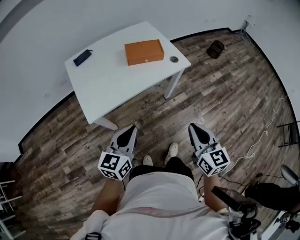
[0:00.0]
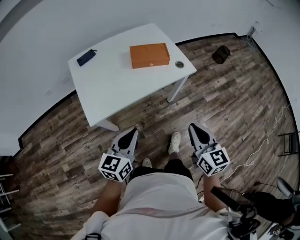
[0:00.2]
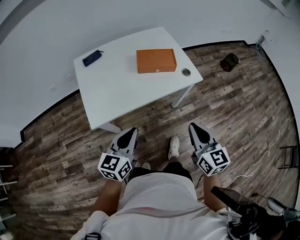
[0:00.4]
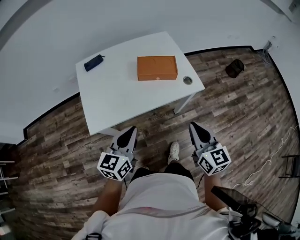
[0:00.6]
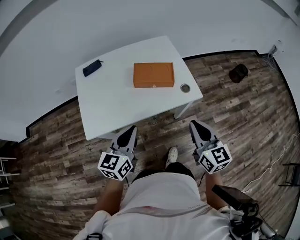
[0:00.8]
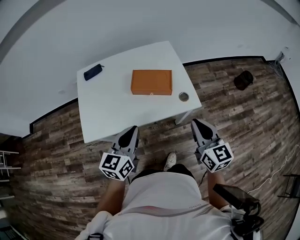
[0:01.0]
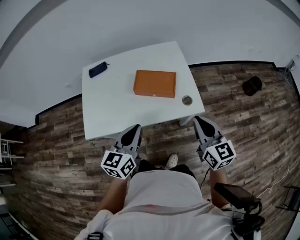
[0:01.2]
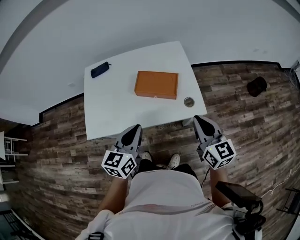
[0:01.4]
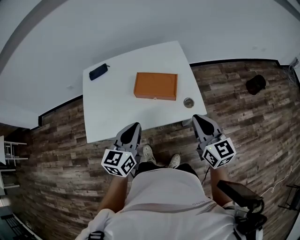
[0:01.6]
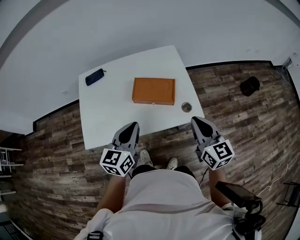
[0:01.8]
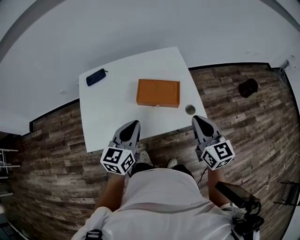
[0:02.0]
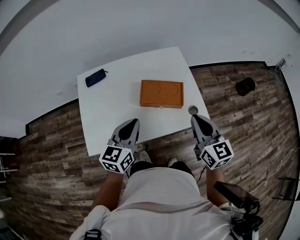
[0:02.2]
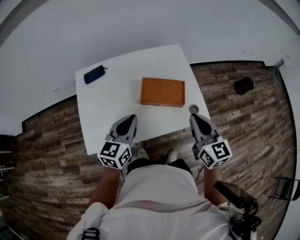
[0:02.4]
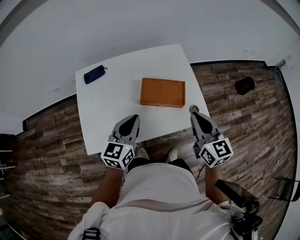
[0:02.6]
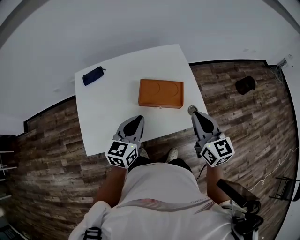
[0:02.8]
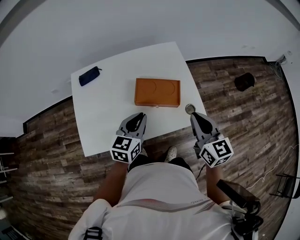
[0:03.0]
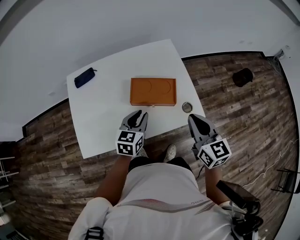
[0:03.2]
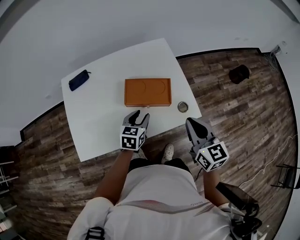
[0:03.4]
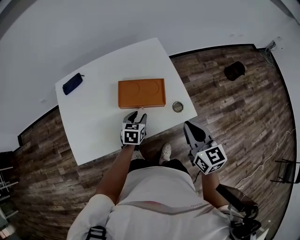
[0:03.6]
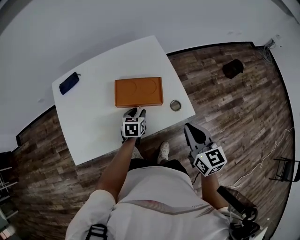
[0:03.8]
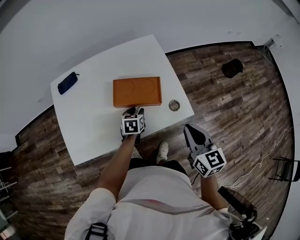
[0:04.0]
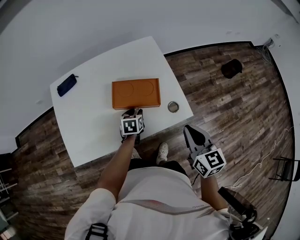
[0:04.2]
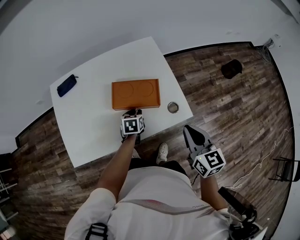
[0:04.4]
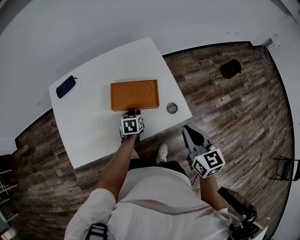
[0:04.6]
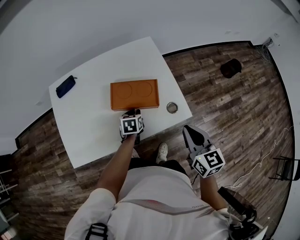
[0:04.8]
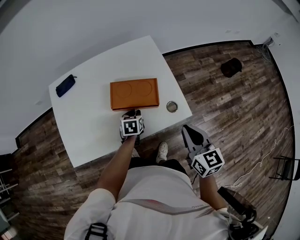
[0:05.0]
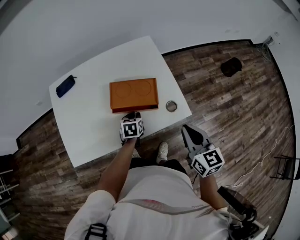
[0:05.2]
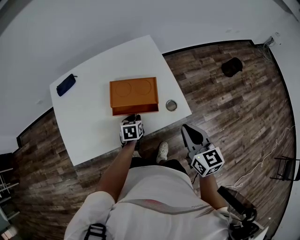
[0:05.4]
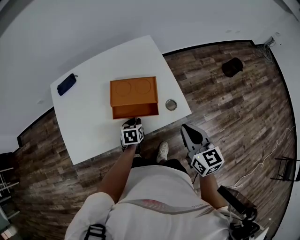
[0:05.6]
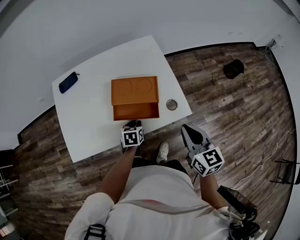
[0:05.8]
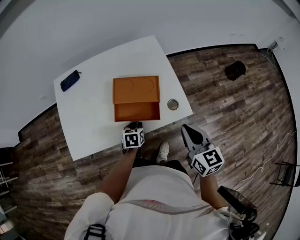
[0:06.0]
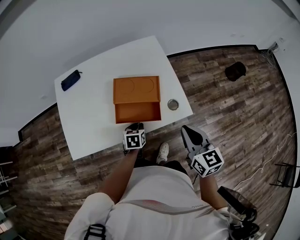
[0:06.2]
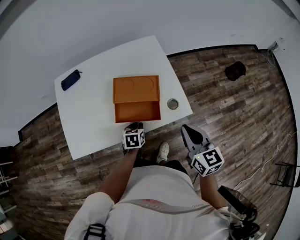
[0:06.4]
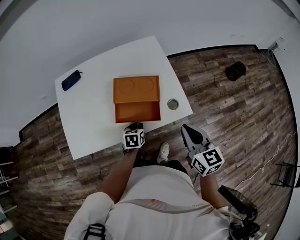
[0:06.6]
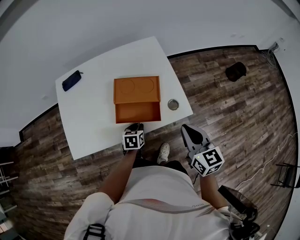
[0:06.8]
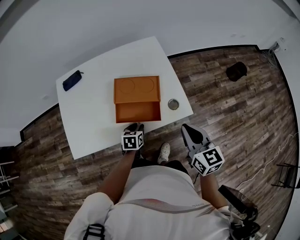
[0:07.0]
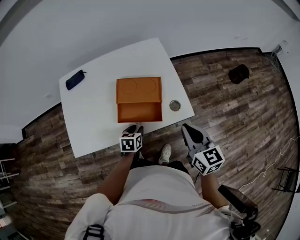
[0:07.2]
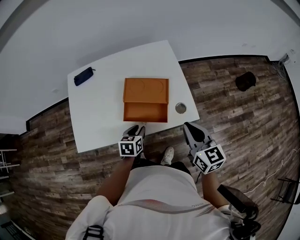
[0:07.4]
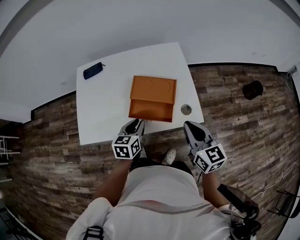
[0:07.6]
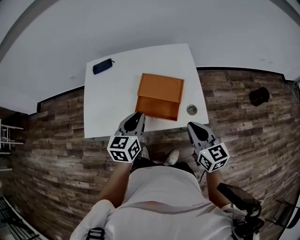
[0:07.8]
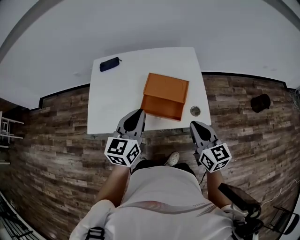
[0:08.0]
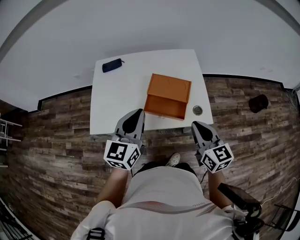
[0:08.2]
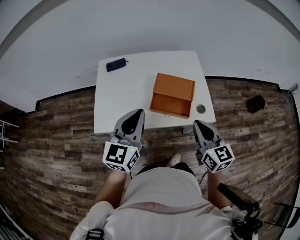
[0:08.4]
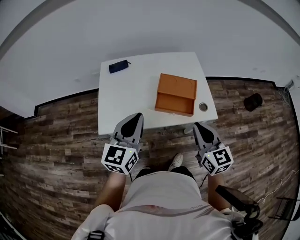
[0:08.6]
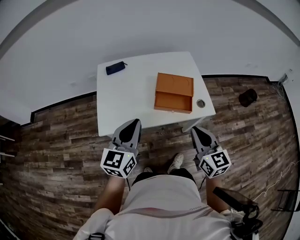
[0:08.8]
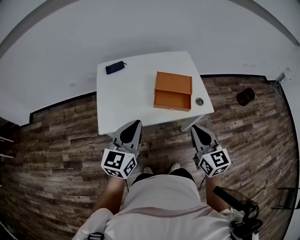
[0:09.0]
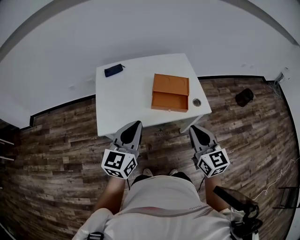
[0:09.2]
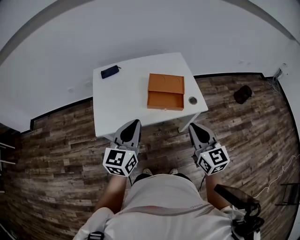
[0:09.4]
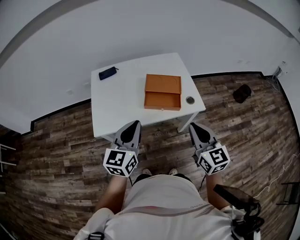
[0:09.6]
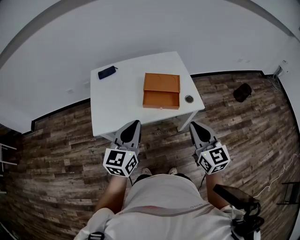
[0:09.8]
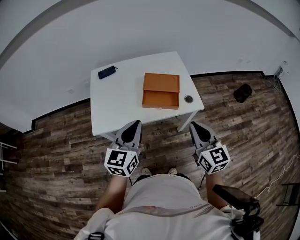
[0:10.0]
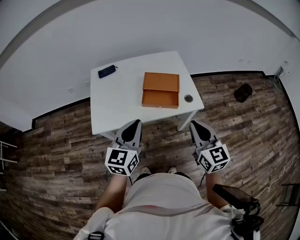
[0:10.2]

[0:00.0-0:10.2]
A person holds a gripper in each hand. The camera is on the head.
0:00.0 to 0:01.4: The right gripper heads forward, covering roughly 35 cm, and swivels roughly 30 degrees, while the left gripper heads forward and to the right, covering some 30 cm, and rotates some 20 degrees.
0:01.4 to 0:03.0: The right gripper shifts approximately 10 cm forward and to the left. The left gripper heads forward and downward, covering roughly 15 cm.
0:03.0 to 0:04.4: The right gripper shifts about 10 cm to the right. The left gripper moves downward, about 20 cm, and changes its angle by roughly 30 degrees.
0:04.4 to 0:05.8: The left gripper moves backward, about 10 cm.
0:05.8 to 0:07.2: The grippers stay close to where they were, moving slightly.
0:07.2 to 0:08.8: The left gripper heads upward, to the left and backward, covering some 40 cm, angles its fingers upward, by about 50 degrees, and closes its fingers. The right gripper goes about 20 cm to the left, backward and upward.
0:08.8 to 0:10.2: Both grippers move to the right, roughly 10 cm.

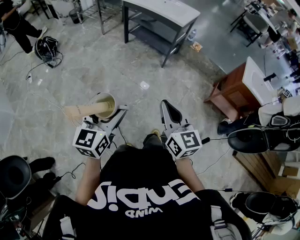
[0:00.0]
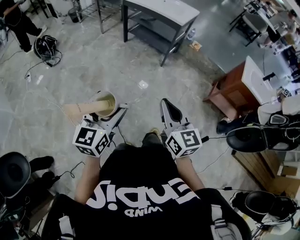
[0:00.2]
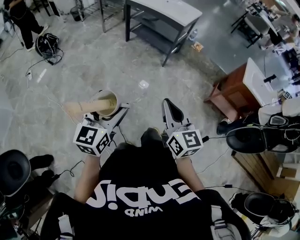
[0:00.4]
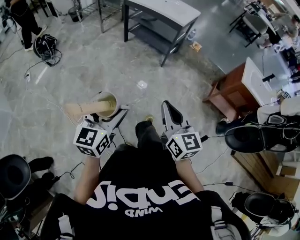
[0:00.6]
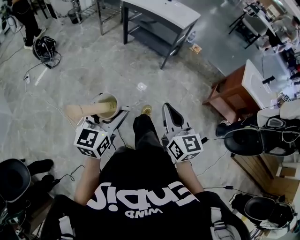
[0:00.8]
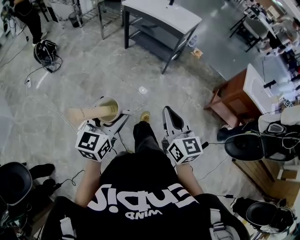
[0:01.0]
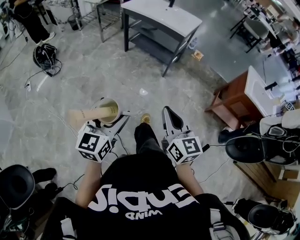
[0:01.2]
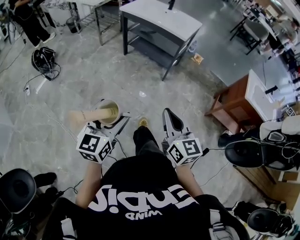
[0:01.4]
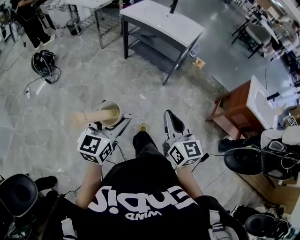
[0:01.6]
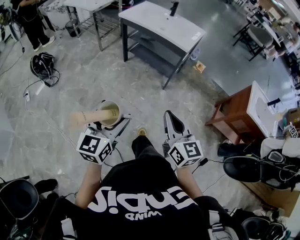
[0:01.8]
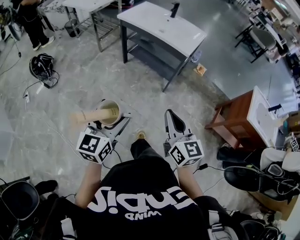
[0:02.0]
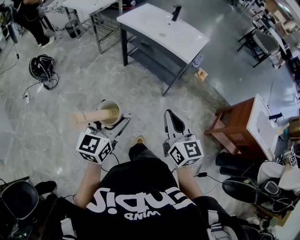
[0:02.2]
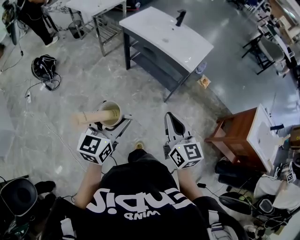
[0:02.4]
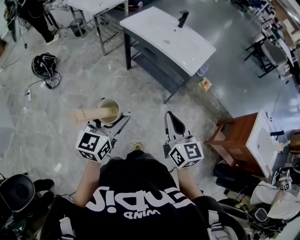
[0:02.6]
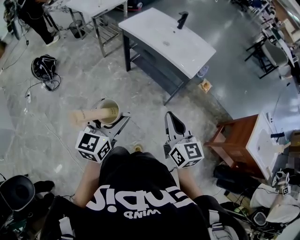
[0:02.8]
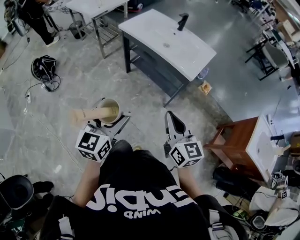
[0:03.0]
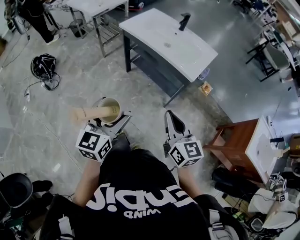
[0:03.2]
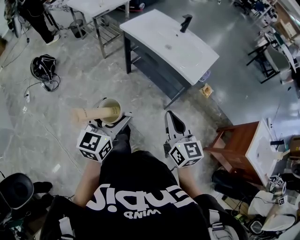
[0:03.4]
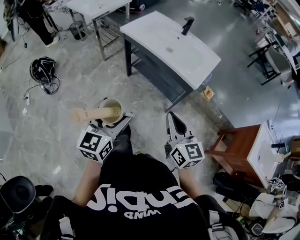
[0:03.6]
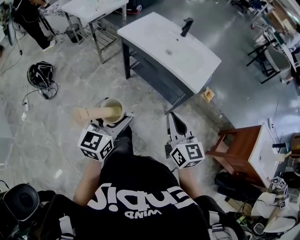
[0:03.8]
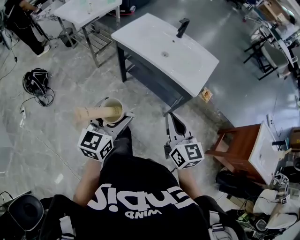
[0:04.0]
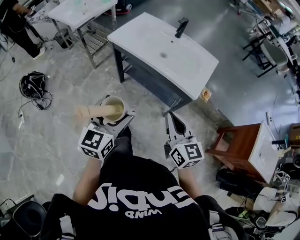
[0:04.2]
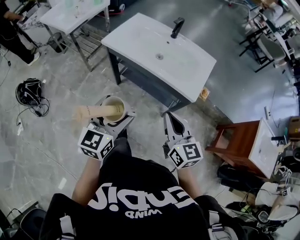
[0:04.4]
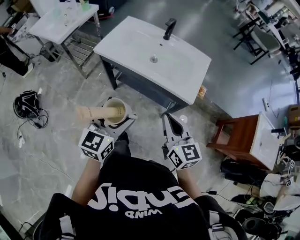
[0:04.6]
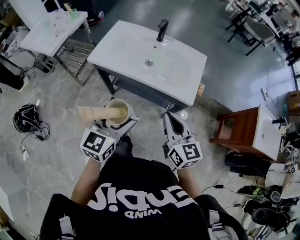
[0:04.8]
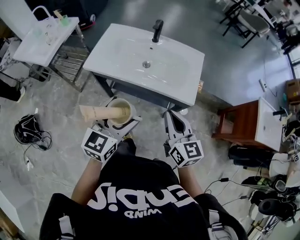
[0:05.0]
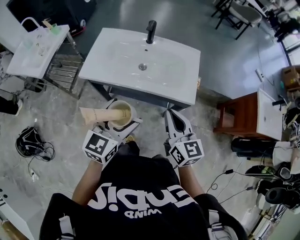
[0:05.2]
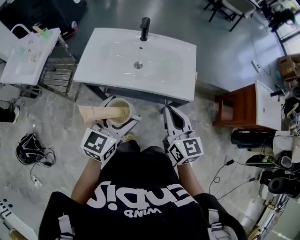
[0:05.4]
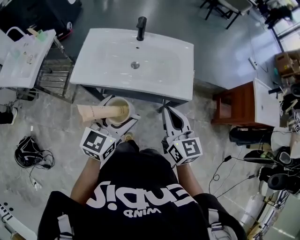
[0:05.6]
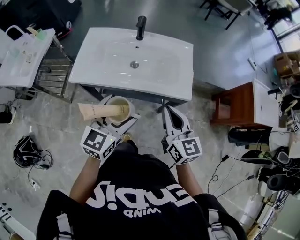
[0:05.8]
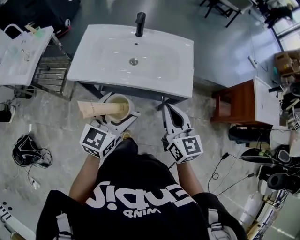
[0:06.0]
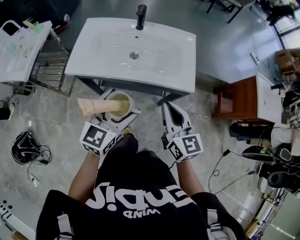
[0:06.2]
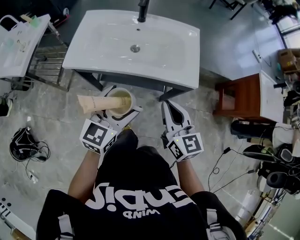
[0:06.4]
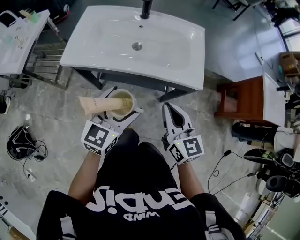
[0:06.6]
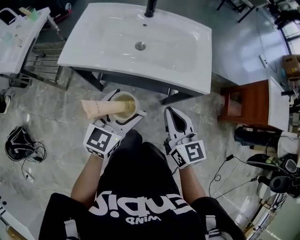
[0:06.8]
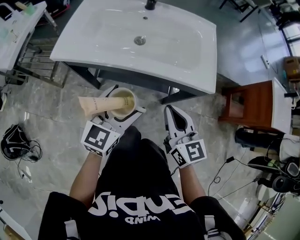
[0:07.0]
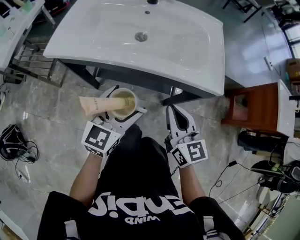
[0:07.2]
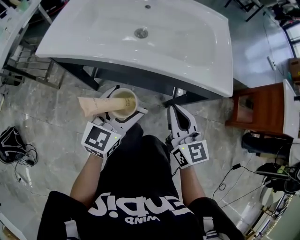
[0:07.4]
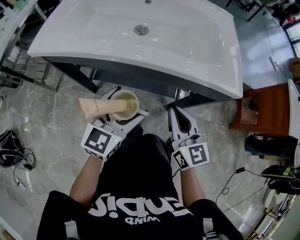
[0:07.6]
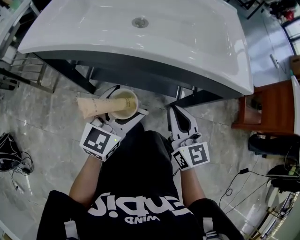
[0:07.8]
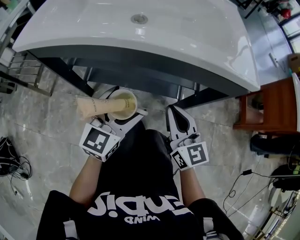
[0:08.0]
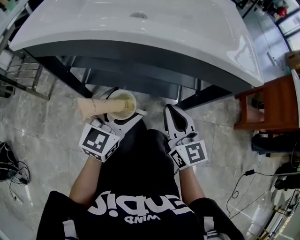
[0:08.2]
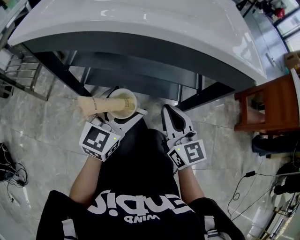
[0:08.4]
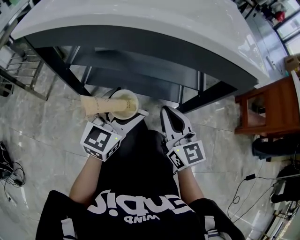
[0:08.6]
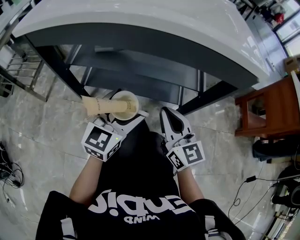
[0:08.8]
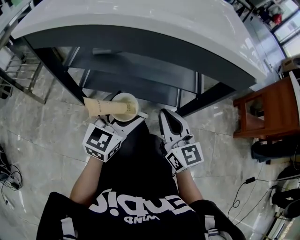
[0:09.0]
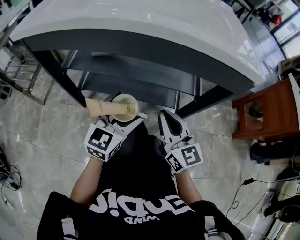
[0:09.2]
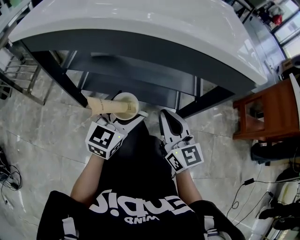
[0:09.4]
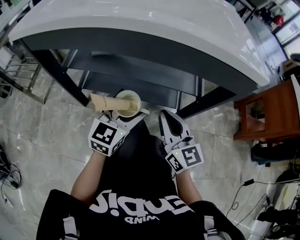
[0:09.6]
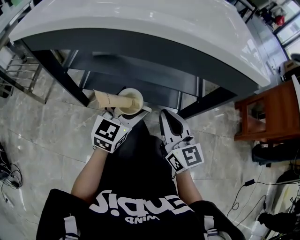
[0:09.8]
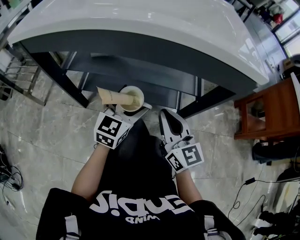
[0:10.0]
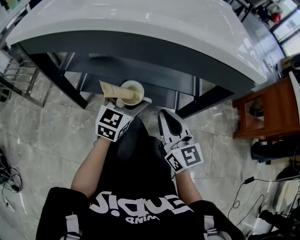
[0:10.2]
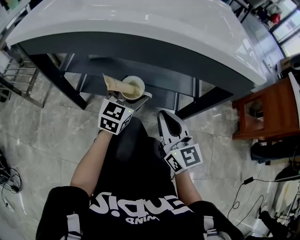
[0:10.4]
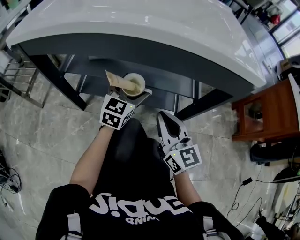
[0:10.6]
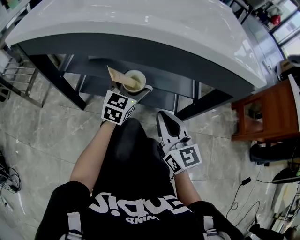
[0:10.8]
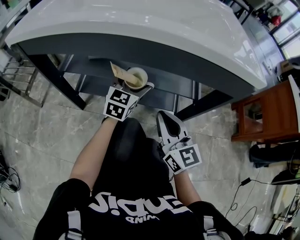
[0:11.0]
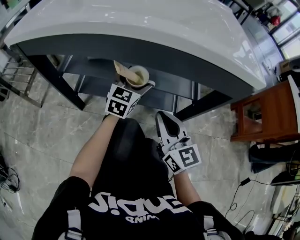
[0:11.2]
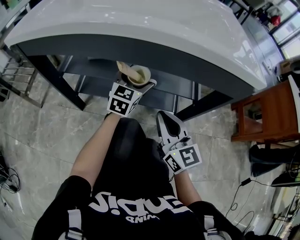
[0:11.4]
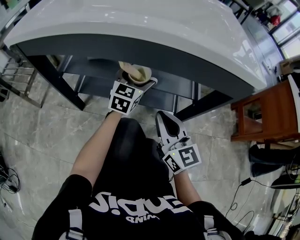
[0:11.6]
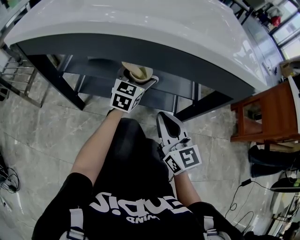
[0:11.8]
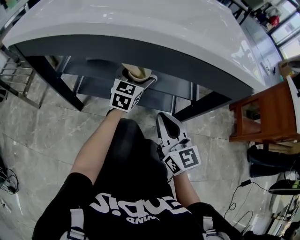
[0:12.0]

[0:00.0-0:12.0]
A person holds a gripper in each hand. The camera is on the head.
0:00.0 to 0:01.6: Both grippers move forward, approximately 15 cm.
0:01.6 to 0:03.0: The grippers both shift forward by some 30 cm.
0:03.0 to 0:04.4: The two grippers go approximately 20 cm forward.
0:04.4 to 0:06.0: The right gripper changes place by some 10 cm, and turns by roughly 30 degrees; the left gripper ends up about 15 cm from where it was, and turns by approximately 30 degrees.
0:06.0 to 0:07.6: The two grippers go roughly 30 cm downward.
0:07.6 to 0:09.0: Both grippers move downward, roughly 15 cm.
0:09.0 to 0:10.4: The left gripper moves forward, roughly 10 cm.
0:10.4 to 0:12.0: The left gripper goes some 10 cm forward.

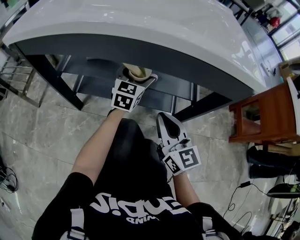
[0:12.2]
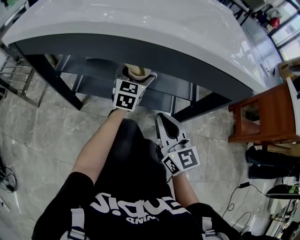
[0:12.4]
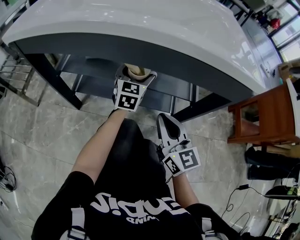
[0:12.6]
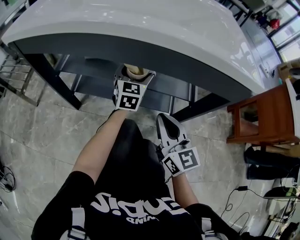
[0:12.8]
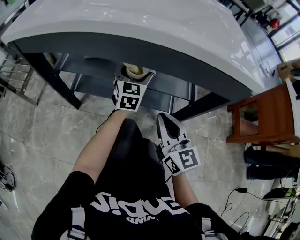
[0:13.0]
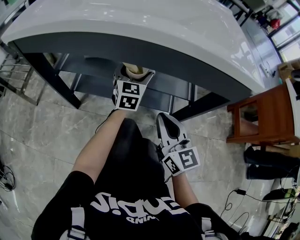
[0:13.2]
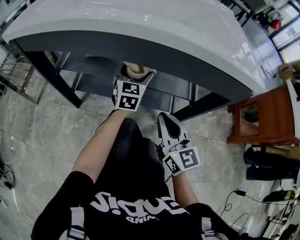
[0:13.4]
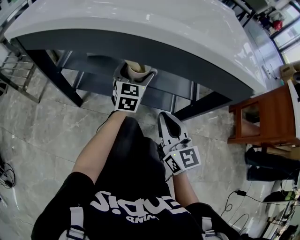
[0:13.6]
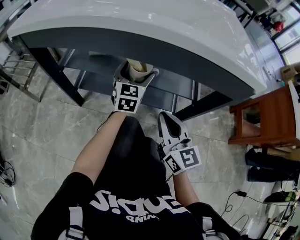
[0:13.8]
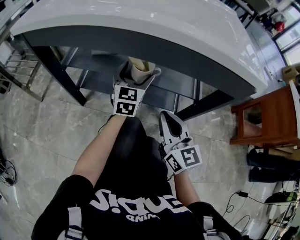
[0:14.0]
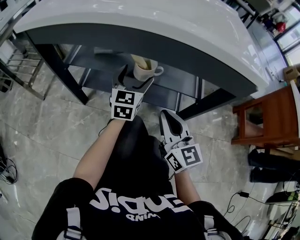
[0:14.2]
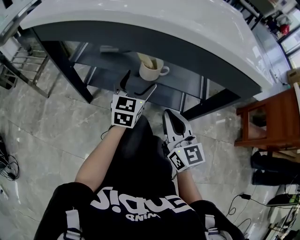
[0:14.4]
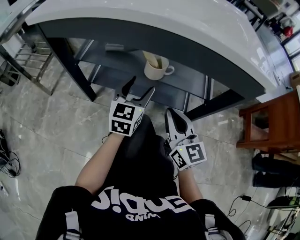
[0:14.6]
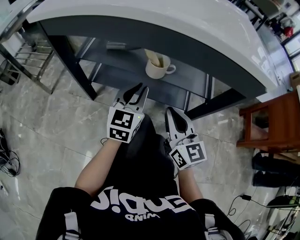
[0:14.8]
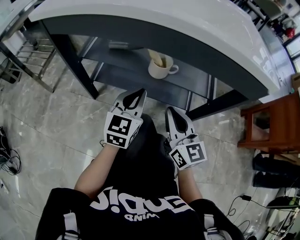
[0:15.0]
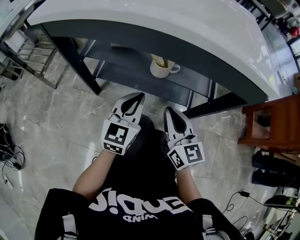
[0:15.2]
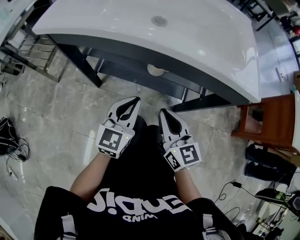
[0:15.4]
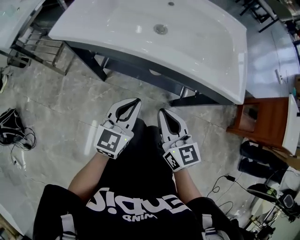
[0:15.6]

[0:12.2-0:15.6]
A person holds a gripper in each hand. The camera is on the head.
0:12.2 to 0:13.8: The grippers make only small movements.
0:13.8 to 0:15.6: The left gripper shifts approximately 30 cm backward and upward, and closes its fingers. The right gripper is displaced upward and to the left by roughly 20 cm.
